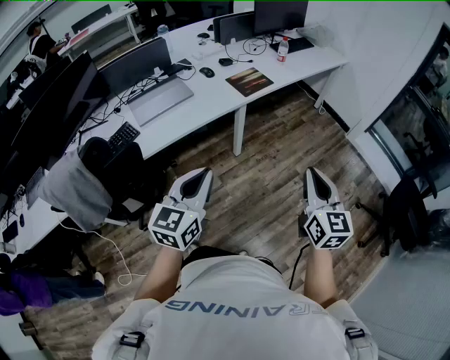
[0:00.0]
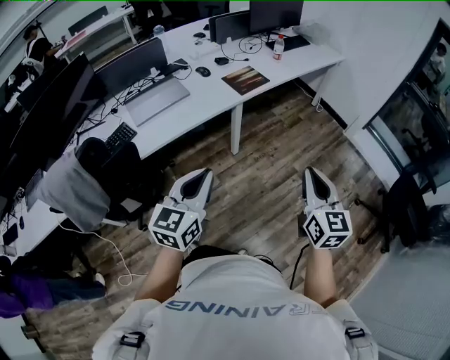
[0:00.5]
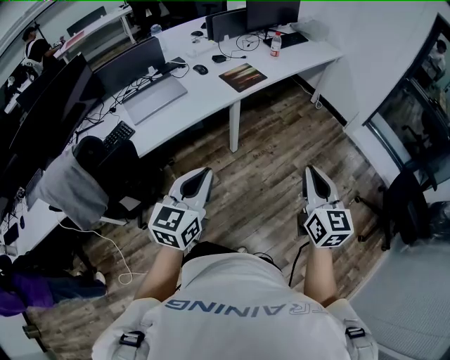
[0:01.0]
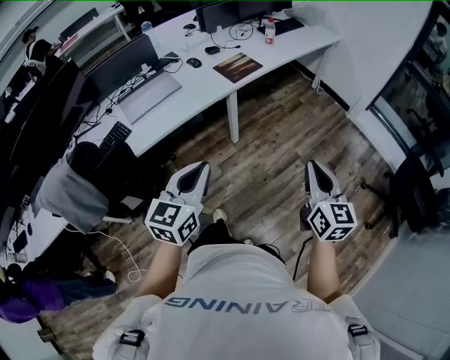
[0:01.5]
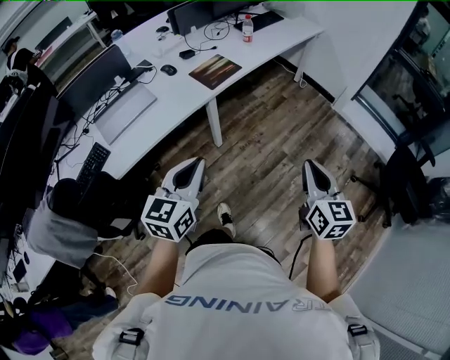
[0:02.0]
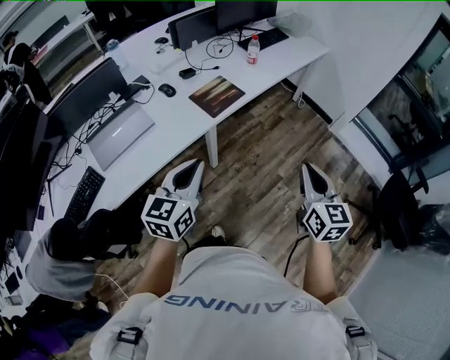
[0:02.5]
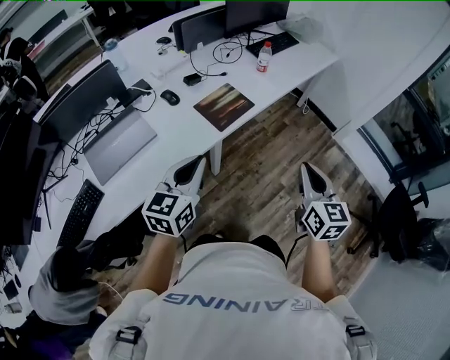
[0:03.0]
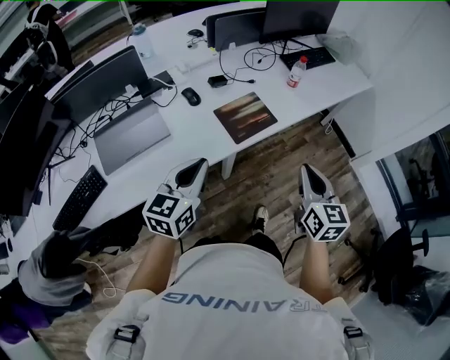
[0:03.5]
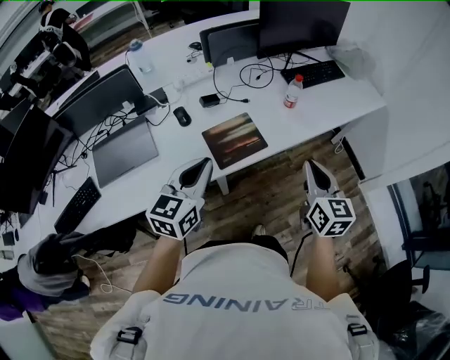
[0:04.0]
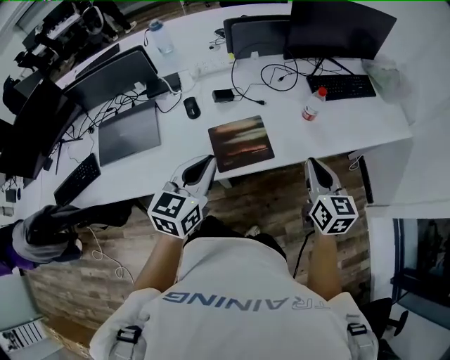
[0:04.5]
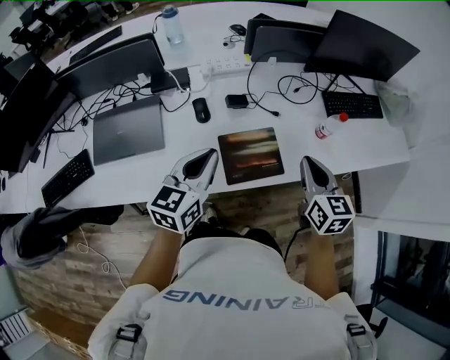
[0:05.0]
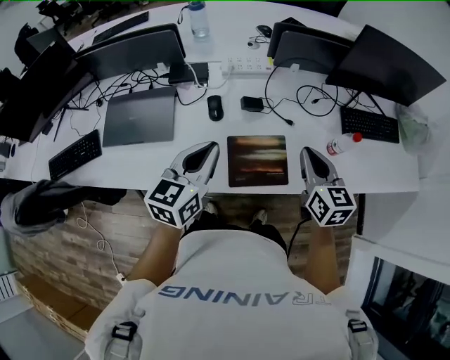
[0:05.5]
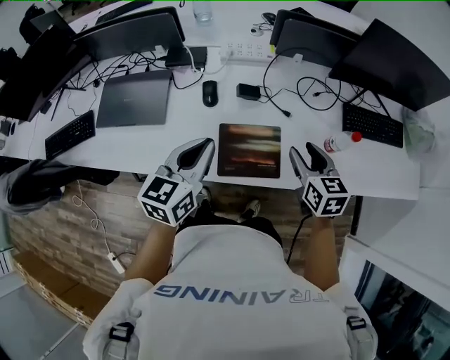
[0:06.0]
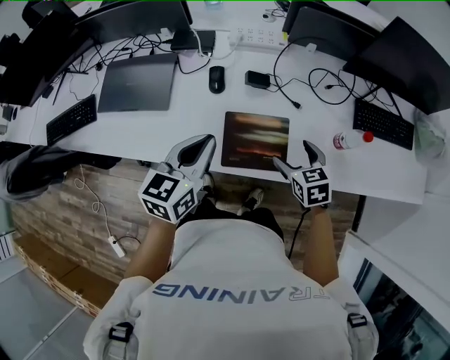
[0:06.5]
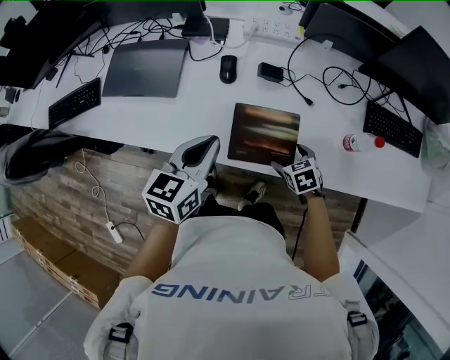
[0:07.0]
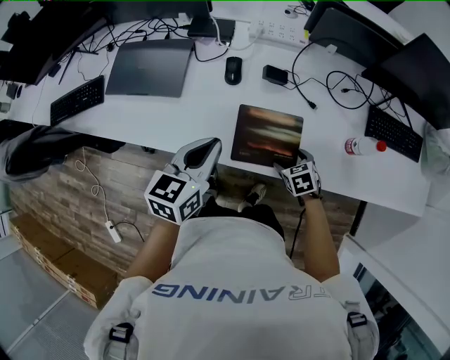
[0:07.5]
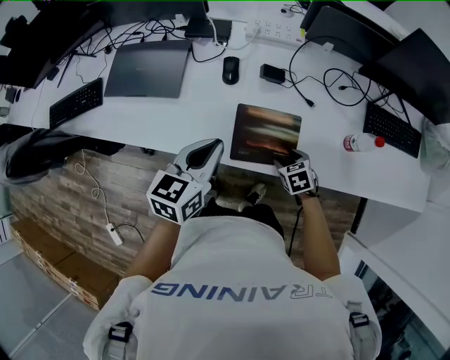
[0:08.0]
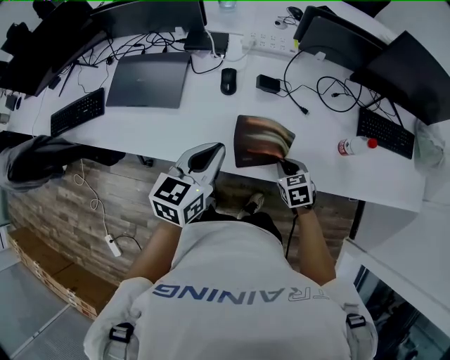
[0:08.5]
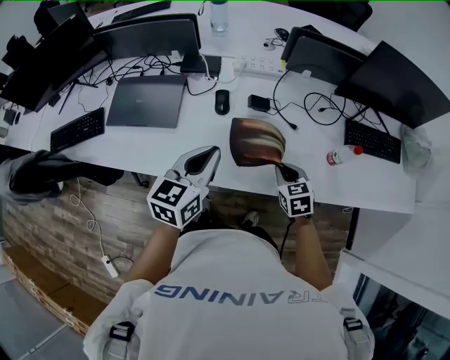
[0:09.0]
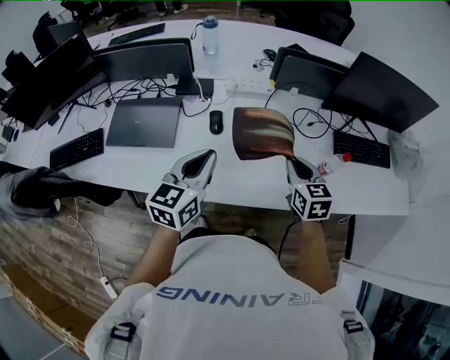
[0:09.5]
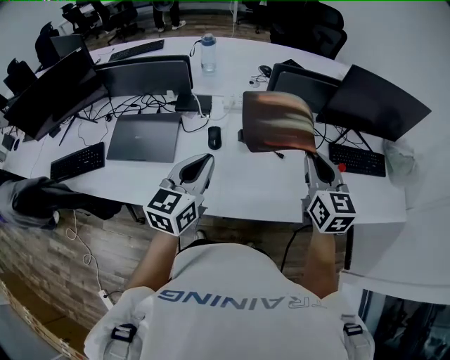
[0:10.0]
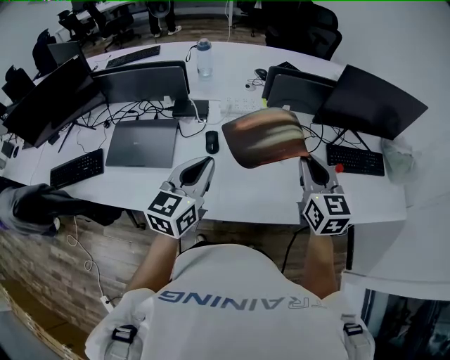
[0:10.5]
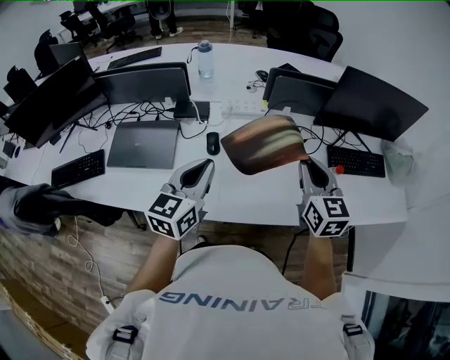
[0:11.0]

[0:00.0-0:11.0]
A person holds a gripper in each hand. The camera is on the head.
0:00.0 to 0:02.0: The left gripper is displaced forward and to the right by about 15 cm, while the right gripper is displaced to the right and forward by about 10 cm.
0:02.0 to 0:03.5: Both grippers travel together forward, approximately 30 cm.
0:03.5 to 0:05.5: The right gripper moves about 35 cm, and rotates some 30 degrees. Meanwhile the left gripper changes place by about 20 cm, and rotates about 30 degrees.
0:05.5 to 0:07.5: The left gripper travels downward by roughly 5 cm; the right gripper goes roughly 30 cm downward, angles its fingers downward, by roughly 40 degrees, and opens up.
0:07.5 to 0:09.0: The left gripper heads upward, covering about 5 cm. The right gripper moves upward, roughly 10 cm, changes its angle by approximately 20 degrees, and closes up.
0:09.0 to 0:11.0: The right gripper moves upward, approximately 25 cm, and angles its fingers upward, by roughly 30 degrees. The left gripper heads upward, covering about 5 cm.

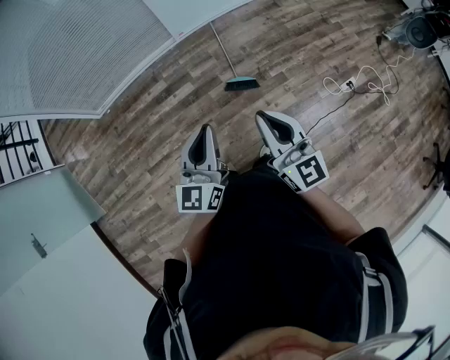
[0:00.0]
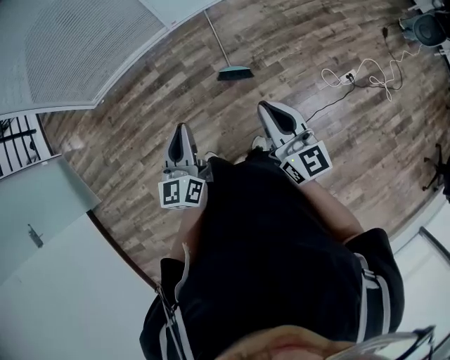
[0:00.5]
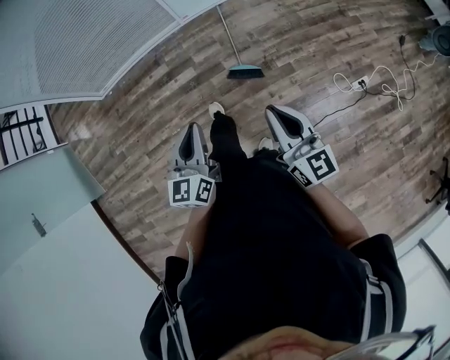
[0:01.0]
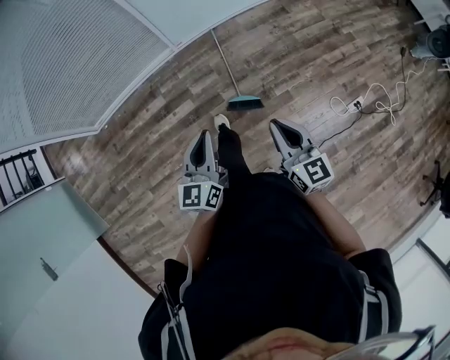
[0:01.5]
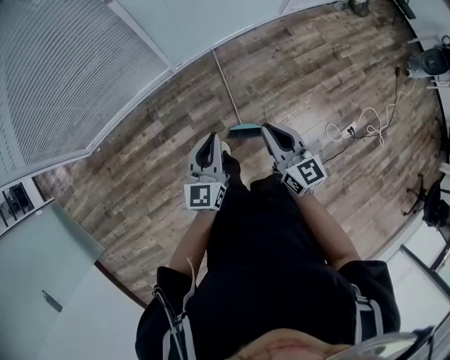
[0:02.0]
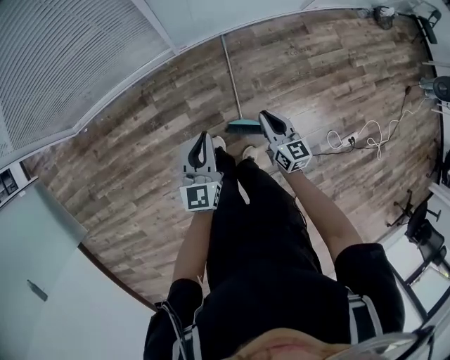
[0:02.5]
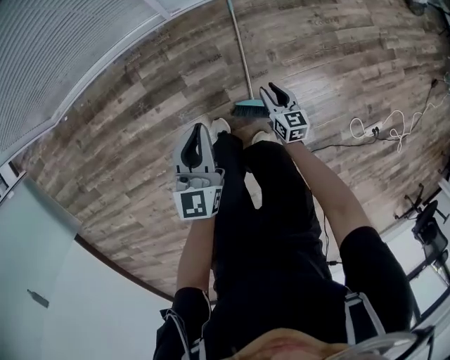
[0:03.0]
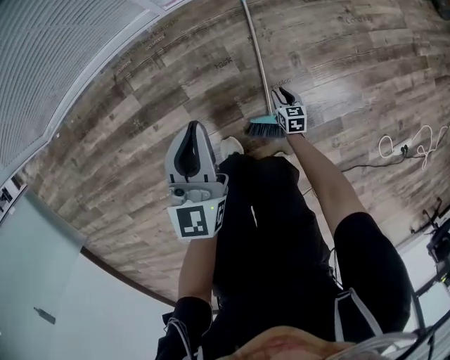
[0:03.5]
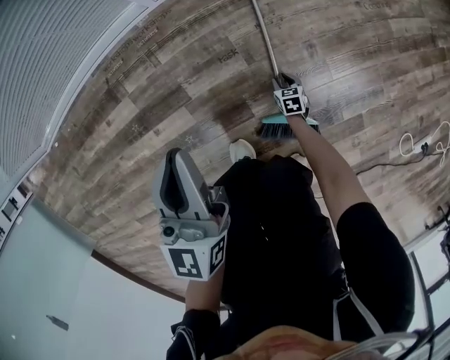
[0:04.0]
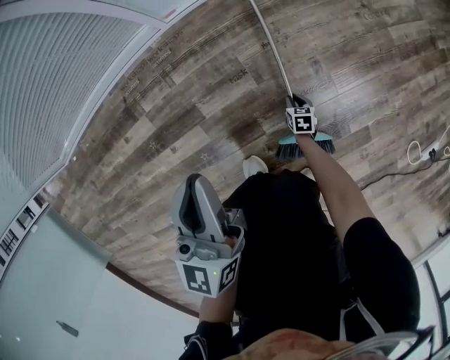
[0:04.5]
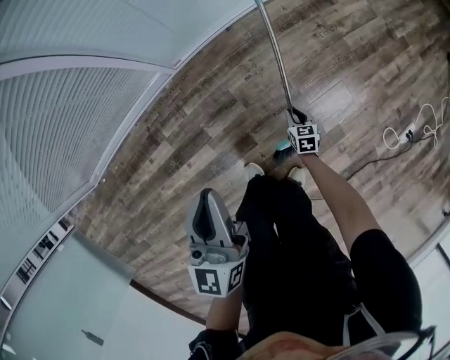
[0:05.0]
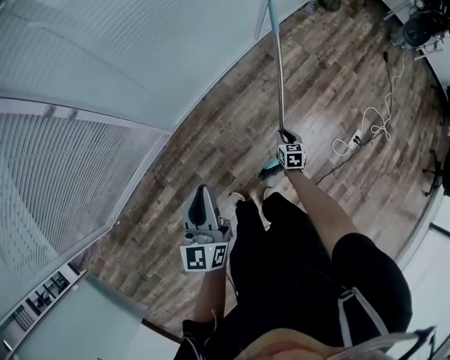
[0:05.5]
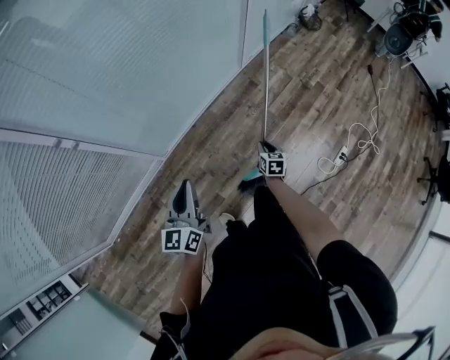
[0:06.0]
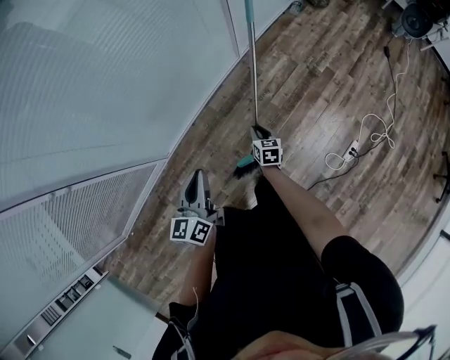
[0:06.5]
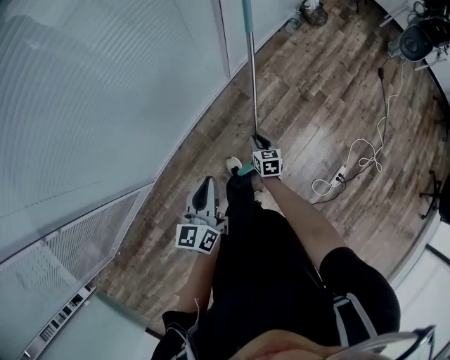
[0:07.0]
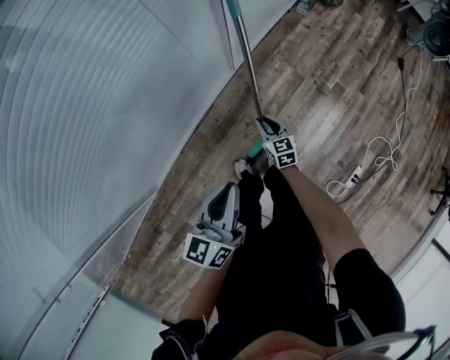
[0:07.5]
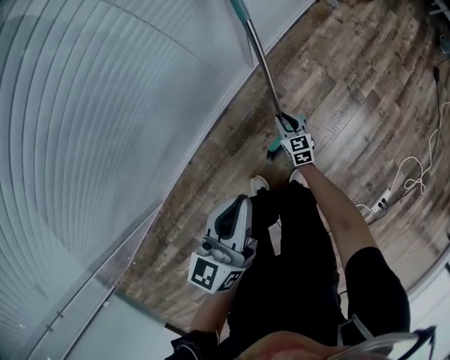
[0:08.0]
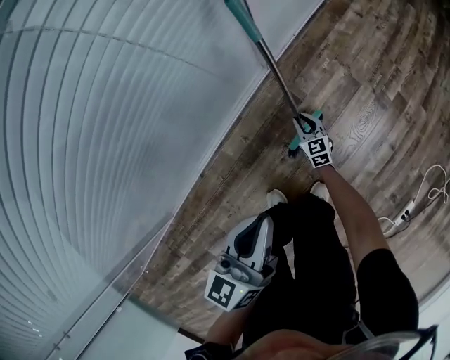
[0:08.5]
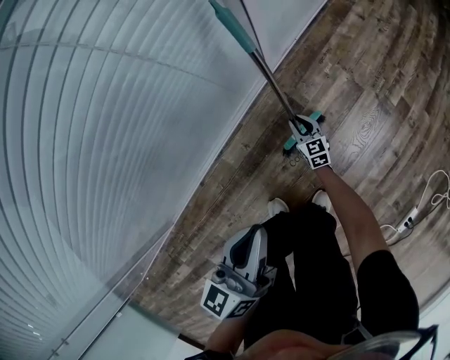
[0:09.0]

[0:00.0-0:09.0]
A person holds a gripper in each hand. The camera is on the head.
0:00.0 to 0:02.0: Both grippers are carried forward, about 40 cm.
0:02.0 to 0:04.5: The left gripper is displaced downward and forward by about 40 cm, while the right gripper goes approximately 1 m downward, and angles its fingers downward, by some 50 degrees.
0:04.5 to 0:07.0: The two grippers travel together, approximately 50 cm. The right gripper travels upward by approximately 70 cm, and rotates roughly 30 degrees; the left gripper rotates about 30 degrees.
0:07.0 to 0:09.0: Both grippers move downward and forward, about 50 cm.

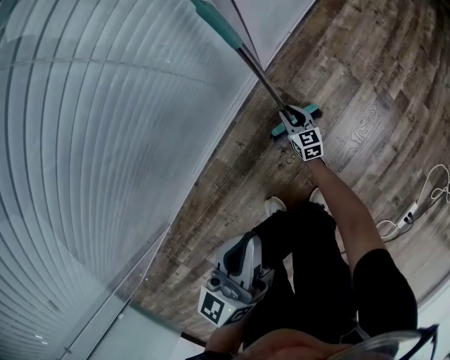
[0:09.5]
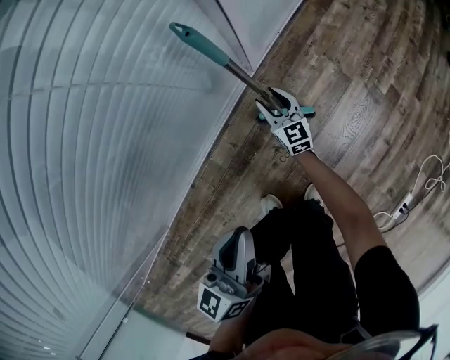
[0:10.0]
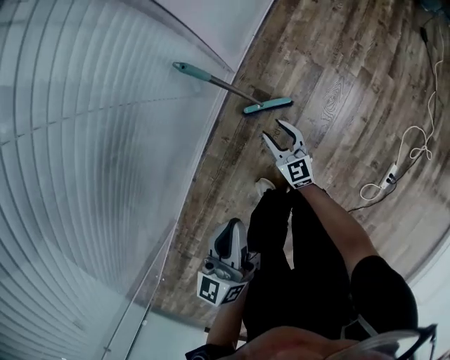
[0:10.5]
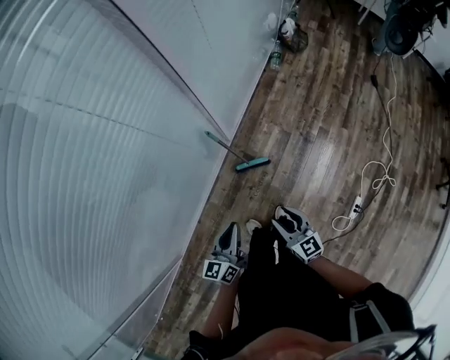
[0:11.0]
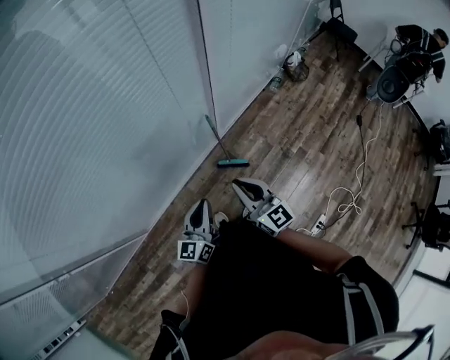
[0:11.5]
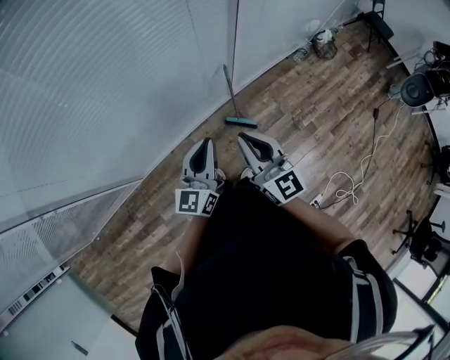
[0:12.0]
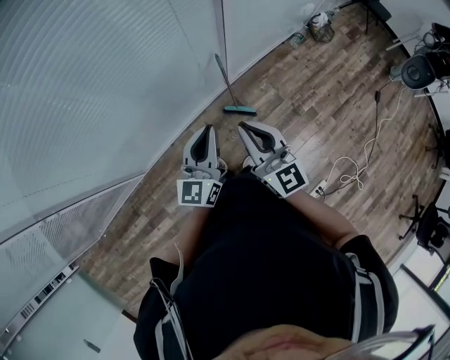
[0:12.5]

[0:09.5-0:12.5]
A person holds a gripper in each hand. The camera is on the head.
0:09.5 to 0:11.0: The right gripper heads upward, covering roughly 60 cm. Meanwhile the left gripper travels upward by approximately 25 cm.
0:11.0 to 0:12.5: The two grippers go about 30 cm upward. The right gripper changes its angle by roughly 30 degrees, and closes up. Meanwhile the left gripper changes its angle by some 30 degrees.

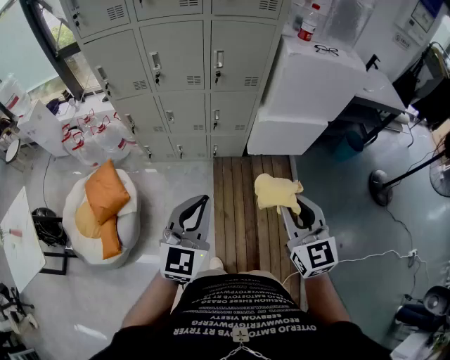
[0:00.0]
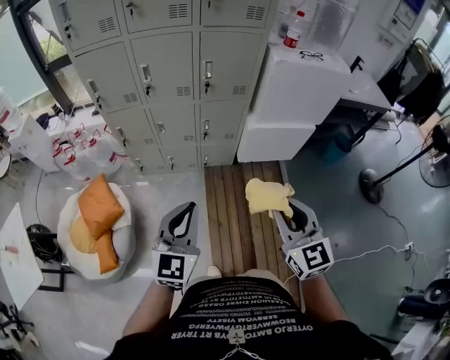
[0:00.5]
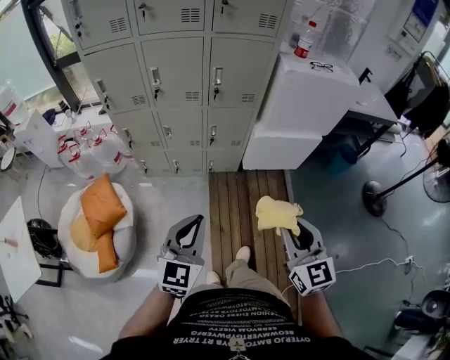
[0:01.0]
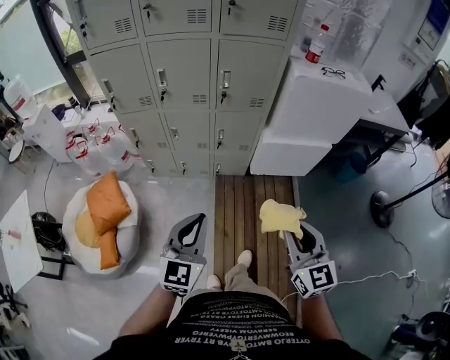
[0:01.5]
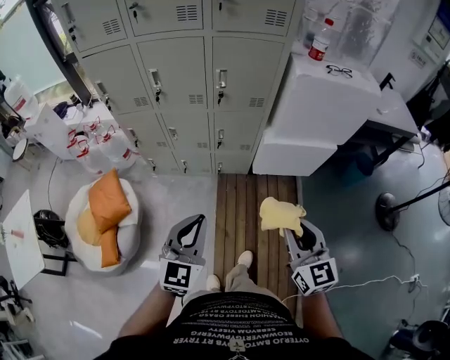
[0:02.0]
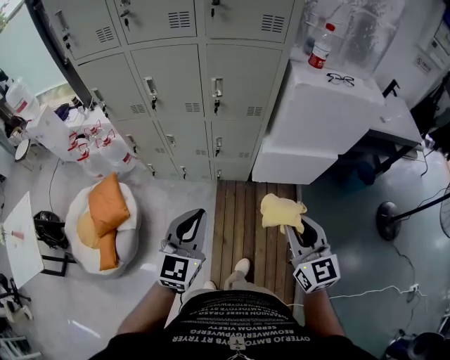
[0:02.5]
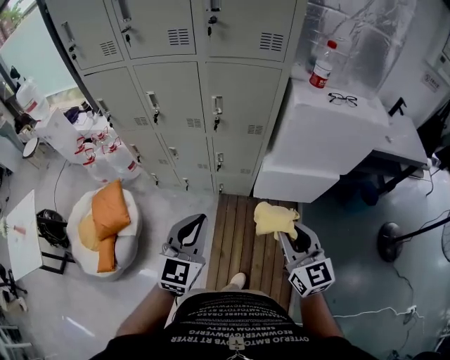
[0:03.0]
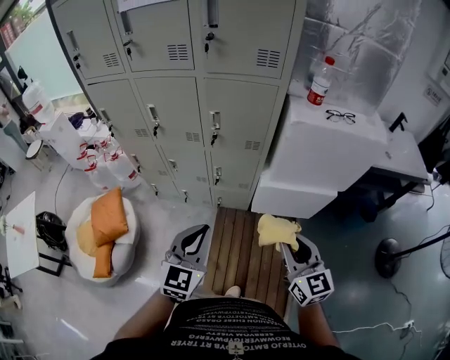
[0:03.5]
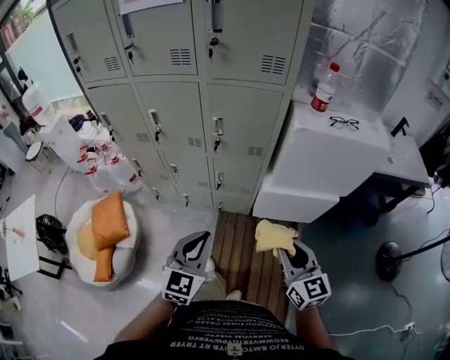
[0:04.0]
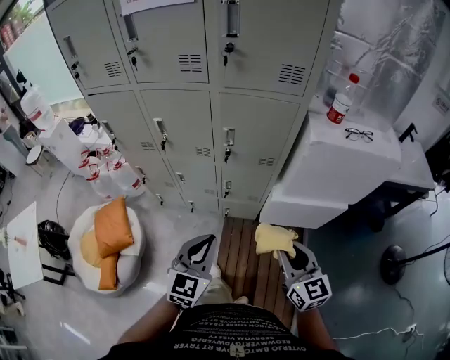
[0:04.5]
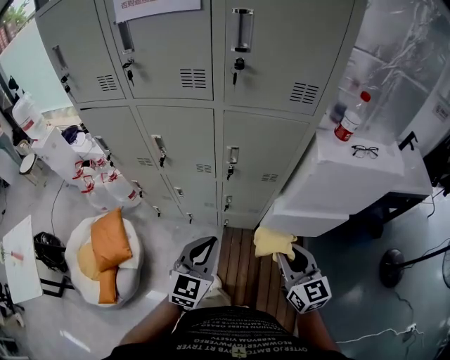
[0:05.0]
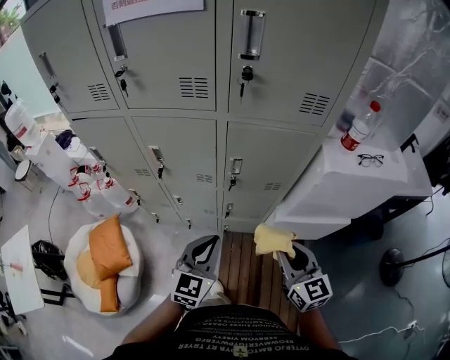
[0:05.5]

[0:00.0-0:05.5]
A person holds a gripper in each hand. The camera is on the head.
0:00.0 to 0:02.0: The left gripper goes some 5 cm forward. Meanwhile the right gripper goes about 10 cm forward and to the right.
0:02.0 to 0:03.5: The grippers both shift forward and to the right by roughly 15 cm.
0:03.5 to 0:05.5: Both grippers move forward and to the left, approximately 20 cm.
